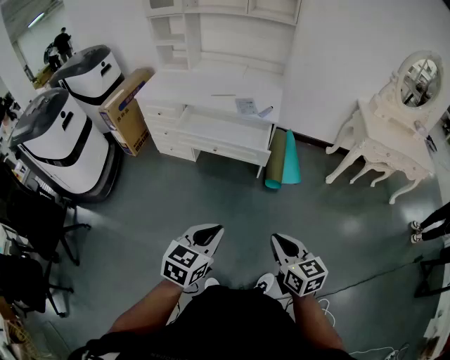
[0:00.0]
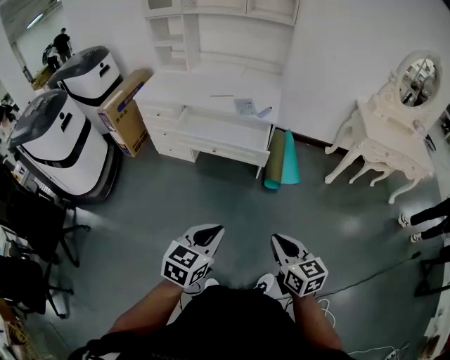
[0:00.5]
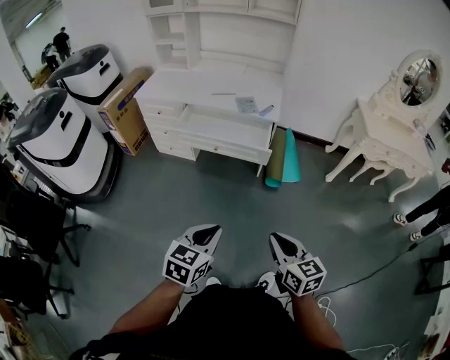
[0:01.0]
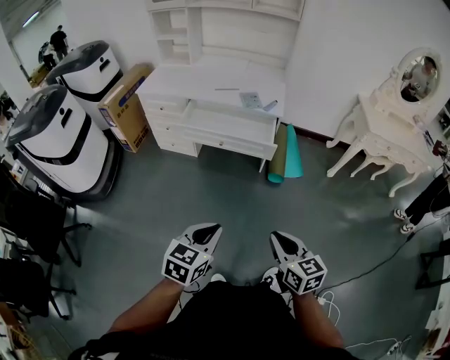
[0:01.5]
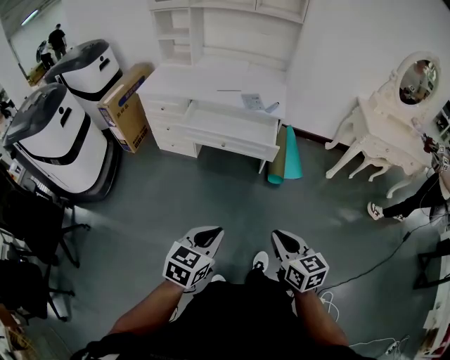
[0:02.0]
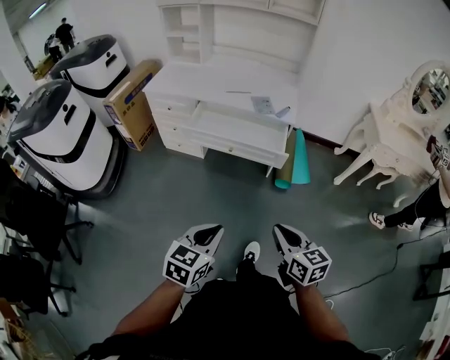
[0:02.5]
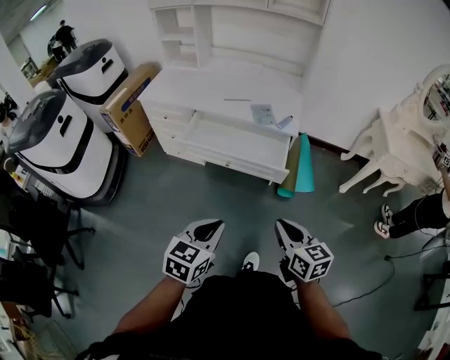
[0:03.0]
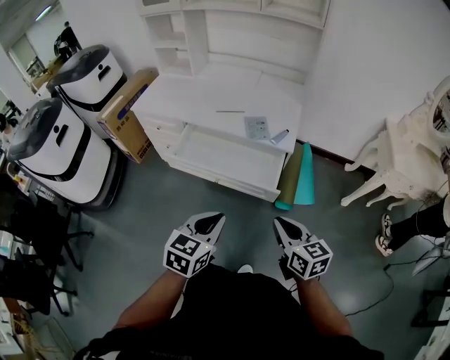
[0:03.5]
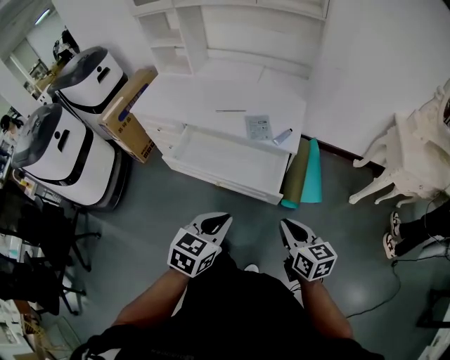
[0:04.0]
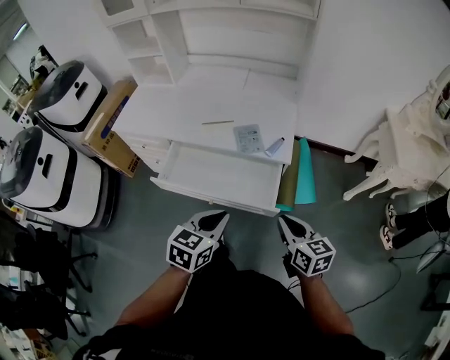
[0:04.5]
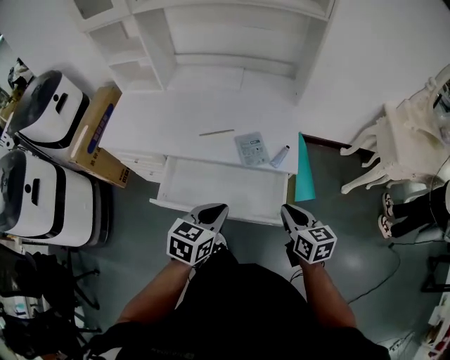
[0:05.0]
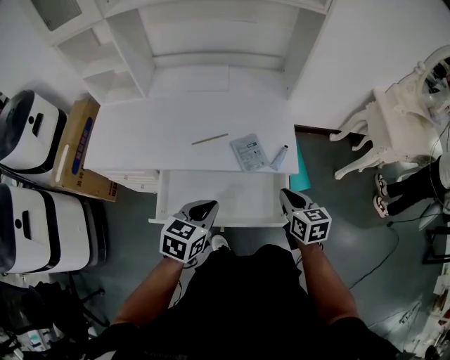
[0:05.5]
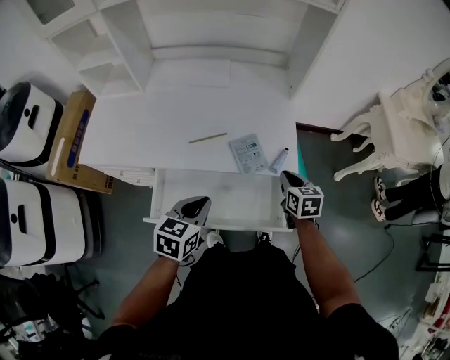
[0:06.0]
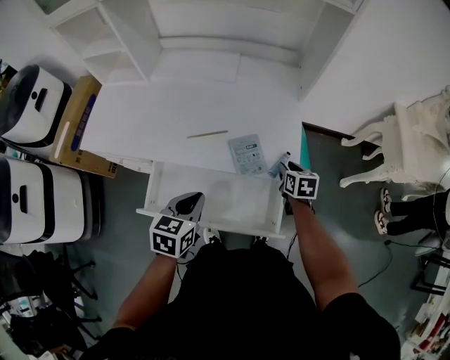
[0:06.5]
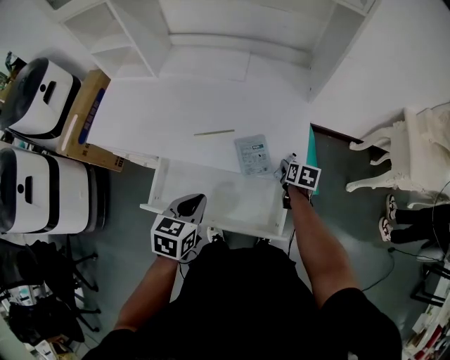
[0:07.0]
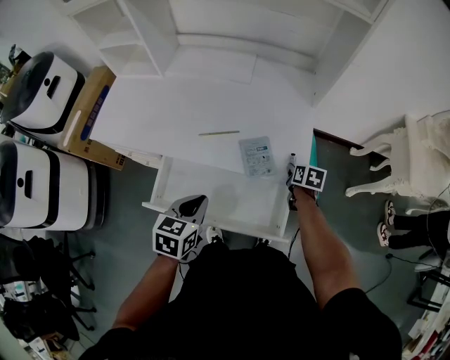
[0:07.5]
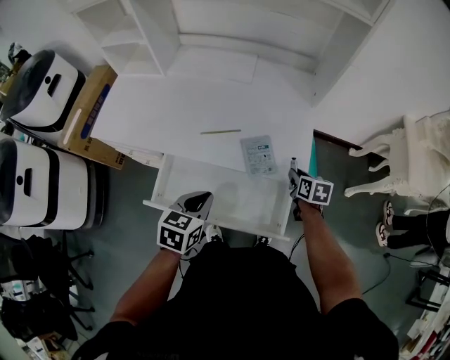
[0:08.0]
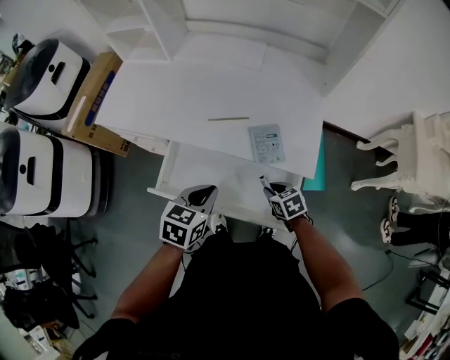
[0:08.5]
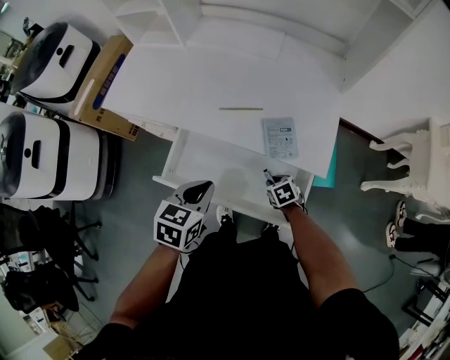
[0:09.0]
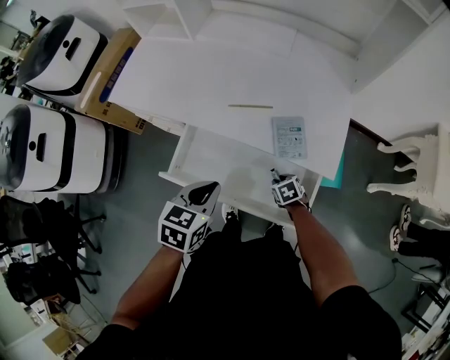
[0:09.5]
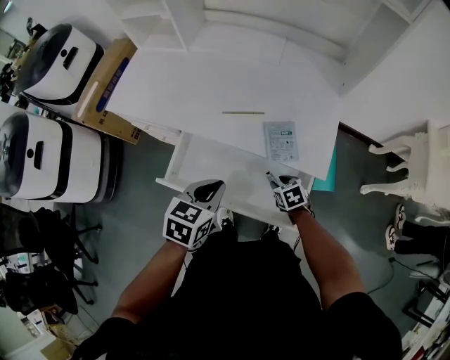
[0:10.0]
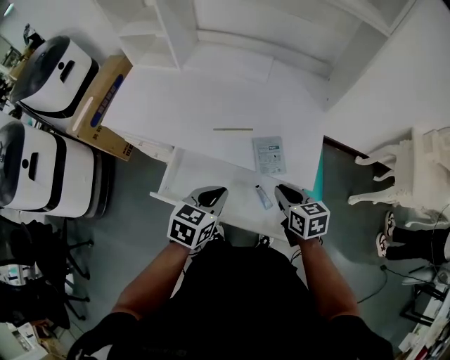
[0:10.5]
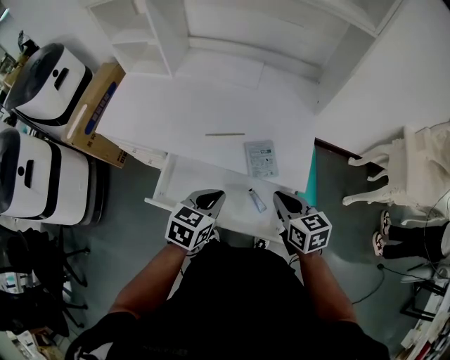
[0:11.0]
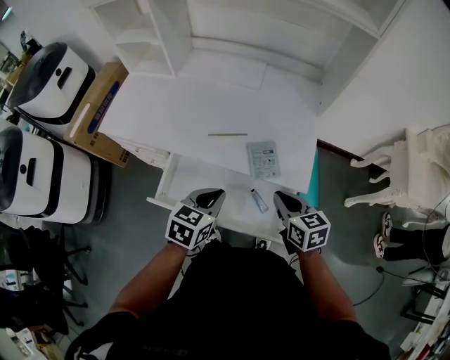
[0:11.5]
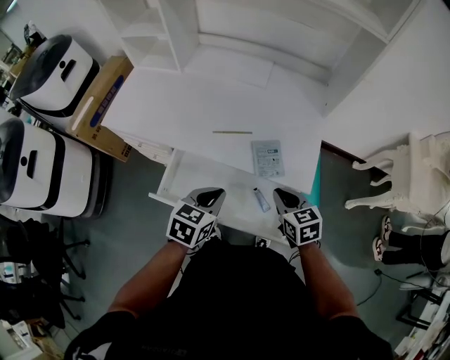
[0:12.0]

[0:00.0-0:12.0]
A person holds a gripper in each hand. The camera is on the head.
0:00.0 to 0:02.0: Both grippers move to the left, roughly 5 cm.
0:02.0 to 0:04.0: Both grippers travel together forward, some 35 cm.
0:04.0 to 0:06.0: The right gripper goes approximately 35 cm forward, and swivels some 30 degrees, while the left gripper shifts approximately 35 cm forward and to the left.
0:06.0 to 0:08.0: The right gripper travels downward and forward by some 10 cm, and opens and closes again.
0:08.0 to 0:10.0: The right gripper goes roughly 20 cm to the left, downward and backward, and swivels roughly 40 degrees.
0:10.0 to 0:12.0: The right gripper heads upward, covering roughly 20 cm, swivels roughly 20 degrees, and closes.

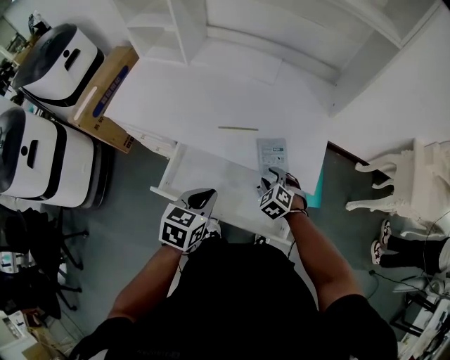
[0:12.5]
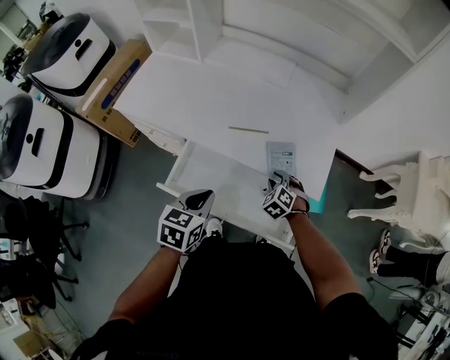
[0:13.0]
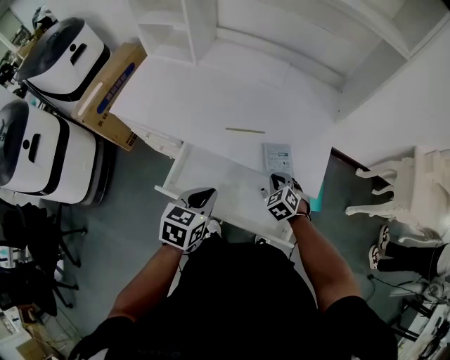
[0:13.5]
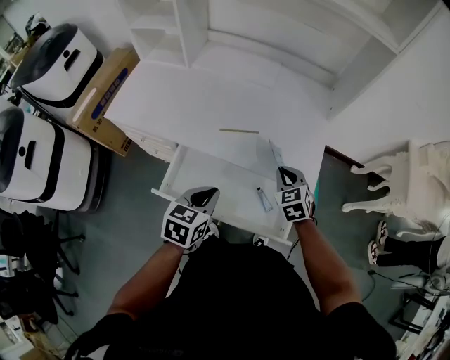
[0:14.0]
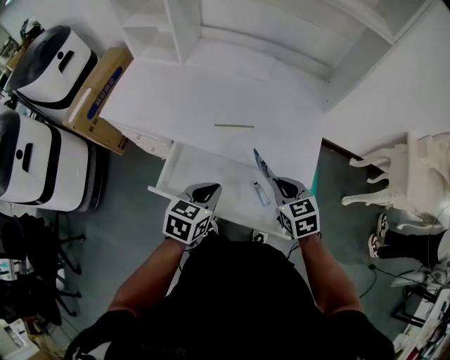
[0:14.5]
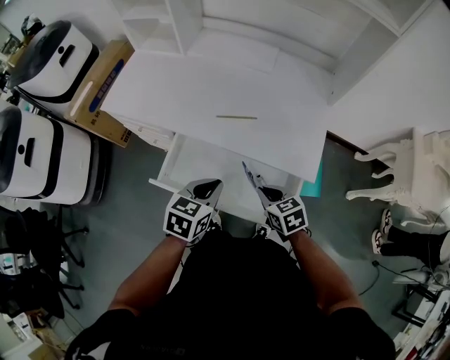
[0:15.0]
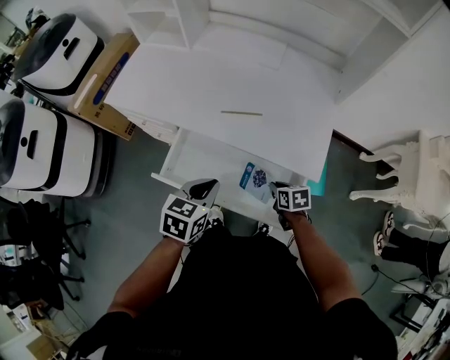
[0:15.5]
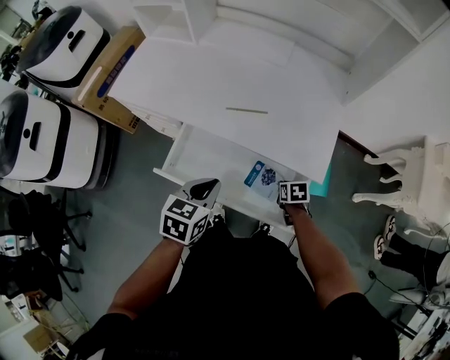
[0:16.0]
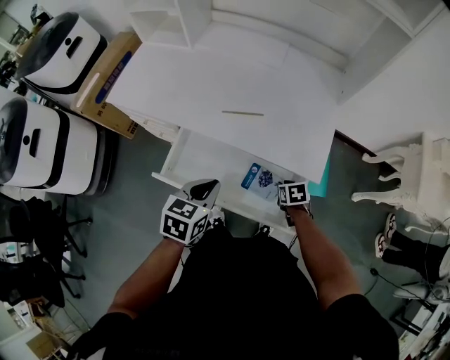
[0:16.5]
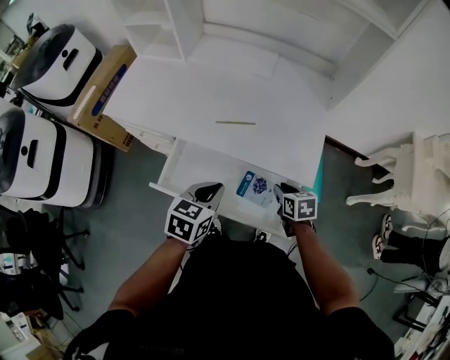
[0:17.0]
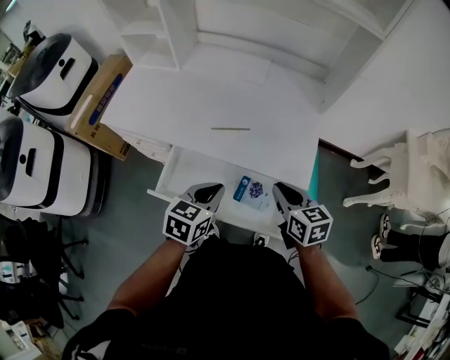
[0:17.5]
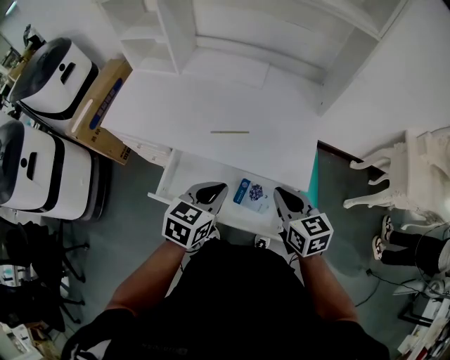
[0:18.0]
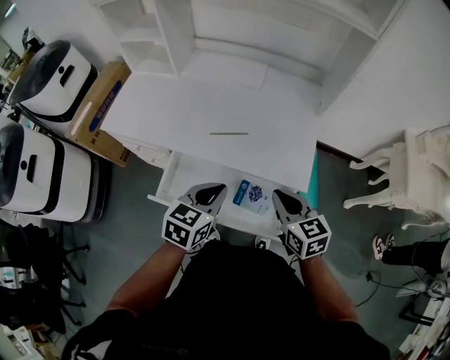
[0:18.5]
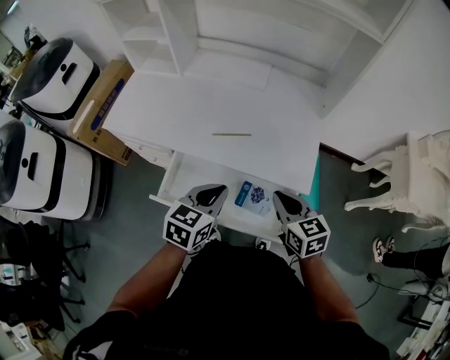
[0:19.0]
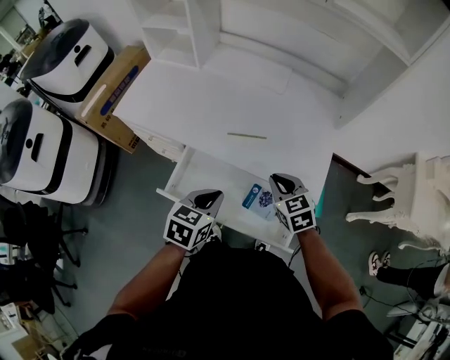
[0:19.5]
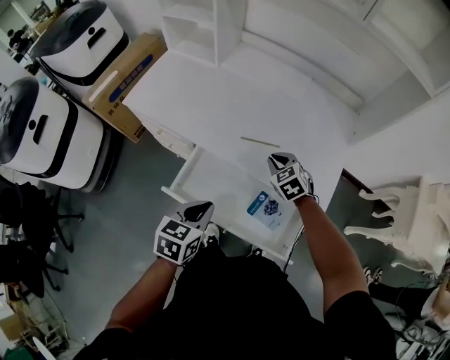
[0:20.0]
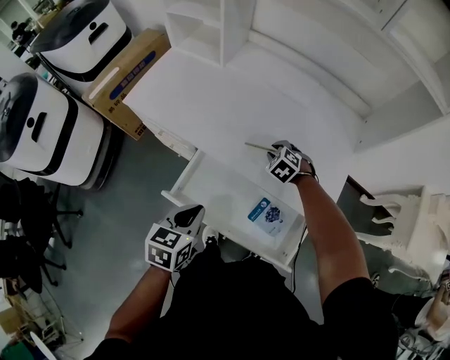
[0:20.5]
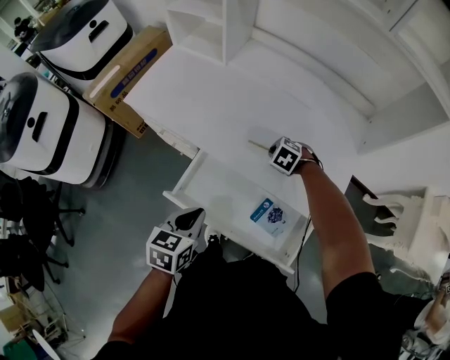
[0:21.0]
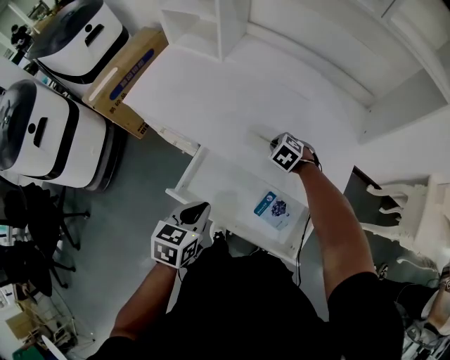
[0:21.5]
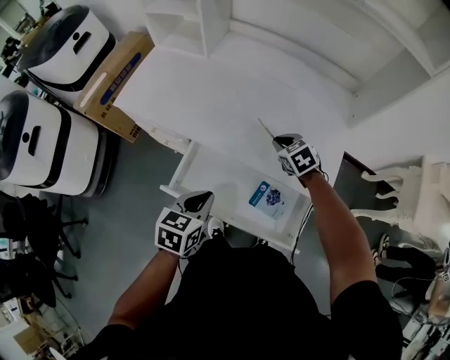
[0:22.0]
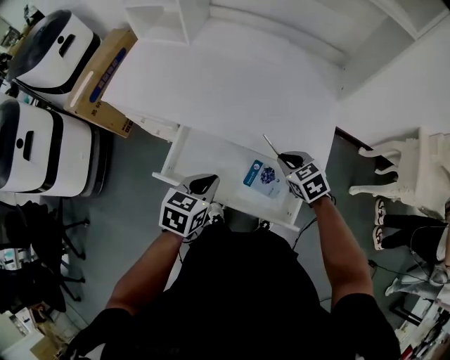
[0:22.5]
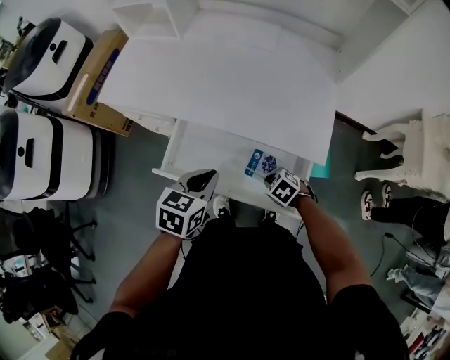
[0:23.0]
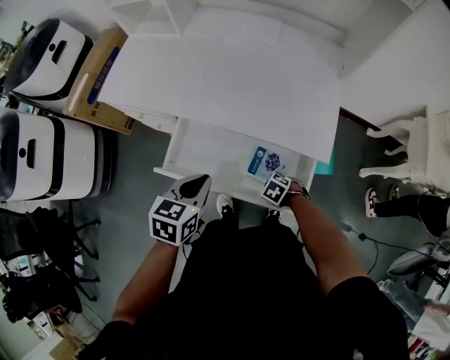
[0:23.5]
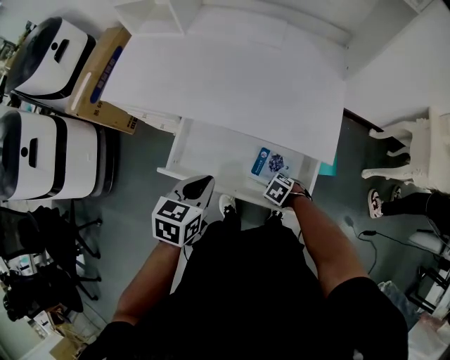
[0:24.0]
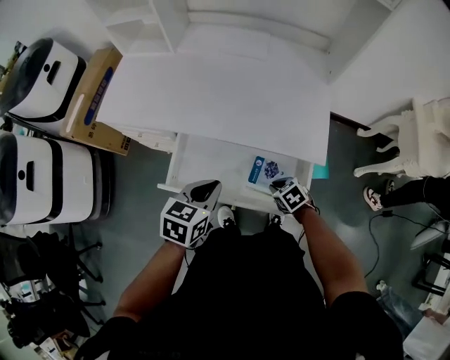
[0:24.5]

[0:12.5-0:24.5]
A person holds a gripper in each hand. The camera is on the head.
0:12.5 to 0:14.5: The right gripper goes approximately 15 cm upward, changes its angle by approximately 40 degrees, and closes up.
0:14.5 to 0:16.5: The right gripper is displaced downward by some 20 cm, and changes its angle by some 30 degrees.
0:16.5 to 0:18.5: The left gripper is displaced upward by about 5 cm, while the right gripper heads upward, covering some 25 cm, and angles its fingers upward, by roughly 40 degrees.
0:18.5 to 0:20.5: The left gripper goes approximately 15 cm to the left, and changes its angle by roughly 20 degrees, while the right gripper heads forward, downward and to the left, covering about 35 cm, and rotates around the line of its fingers by roughly 50 degrees, counterclockwise from behind.
0:20.5 to 0:22.5: The left gripper moves to the right, approximately 5 cm. The right gripper goes roughly 20 cm backward, to the right and upward, and swivels about 30 degrees.
0:22.5 to 0:24.5: The right gripper moves downward, about 15 cm.

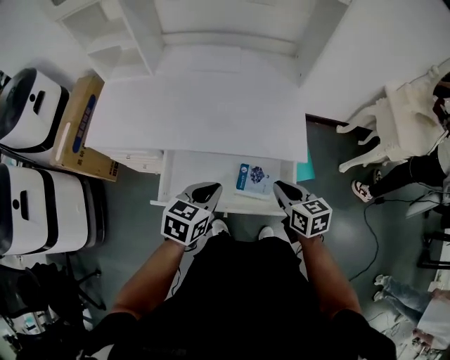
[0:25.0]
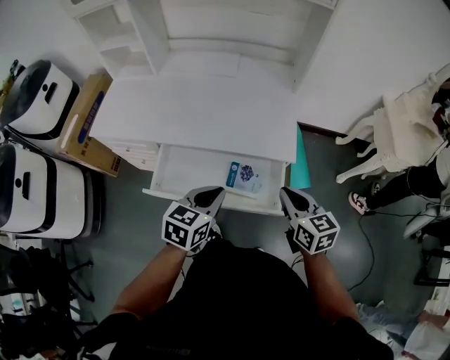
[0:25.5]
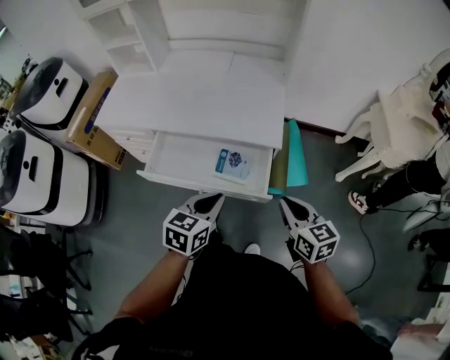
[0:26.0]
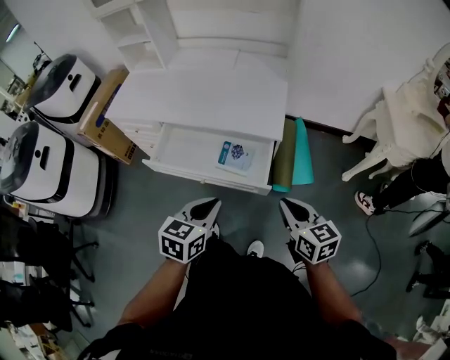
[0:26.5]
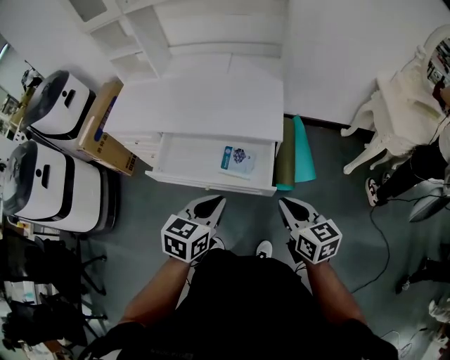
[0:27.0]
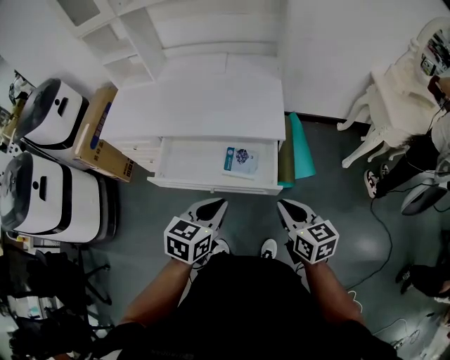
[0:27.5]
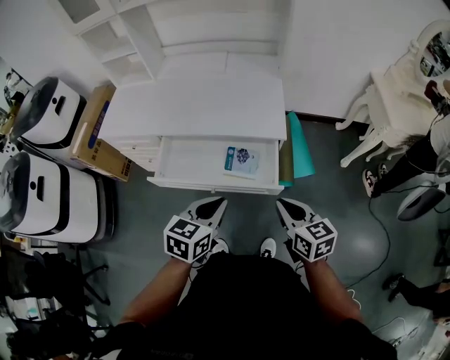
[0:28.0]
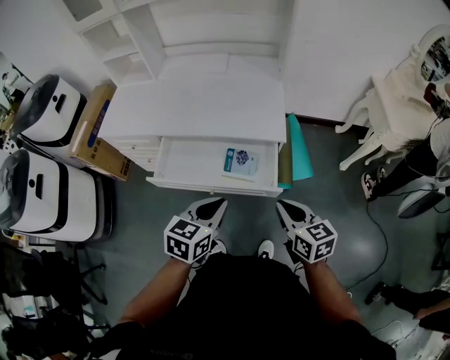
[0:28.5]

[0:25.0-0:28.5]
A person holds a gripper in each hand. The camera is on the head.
0:25.0 to 0:27.0: The right gripper travels backward, to the right and upward by about 25 cm. The left gripper is displaced backward and to the right by roughly 25 cm.
0:27.0 to 0:28.5: The grippers make only small movements.
